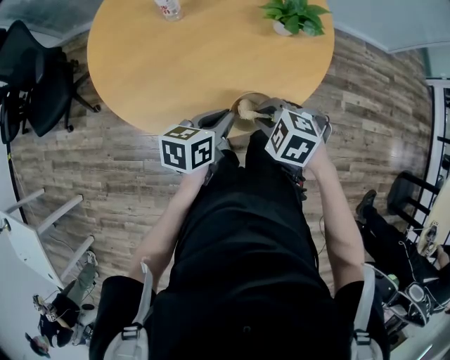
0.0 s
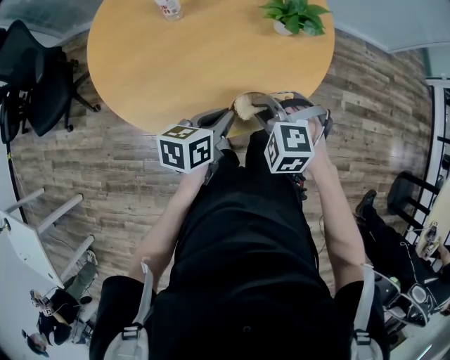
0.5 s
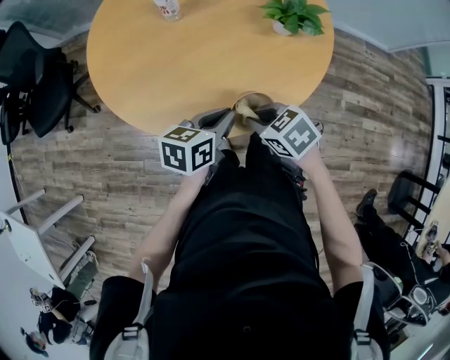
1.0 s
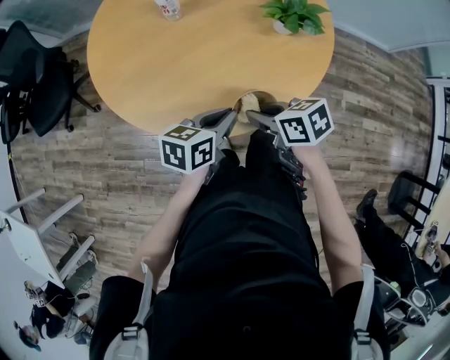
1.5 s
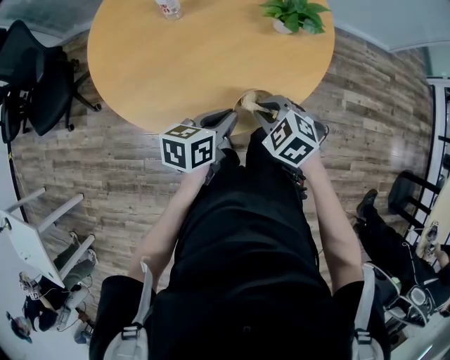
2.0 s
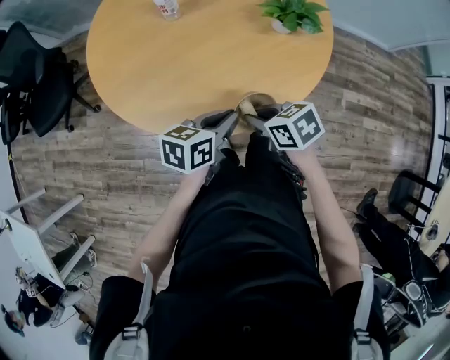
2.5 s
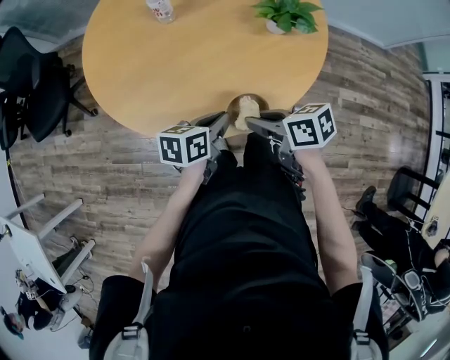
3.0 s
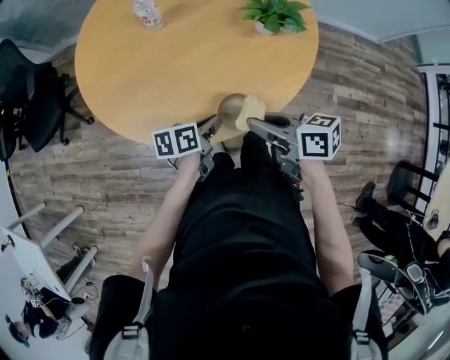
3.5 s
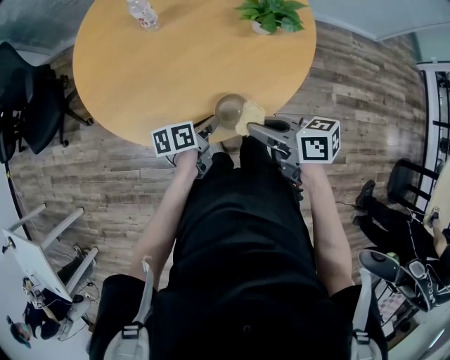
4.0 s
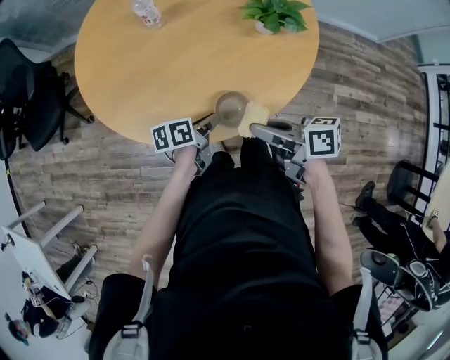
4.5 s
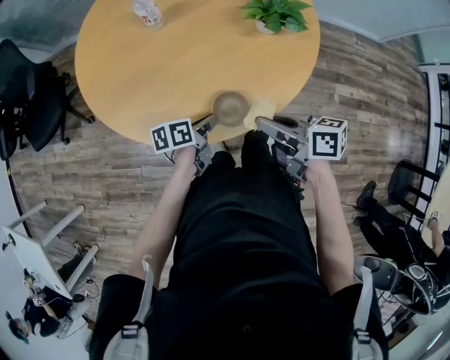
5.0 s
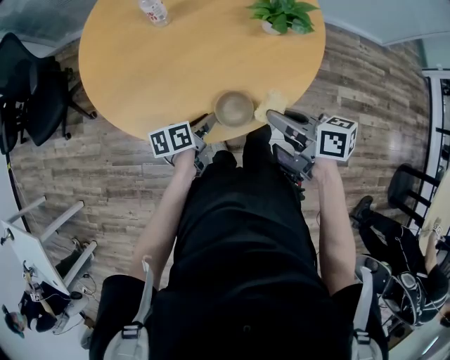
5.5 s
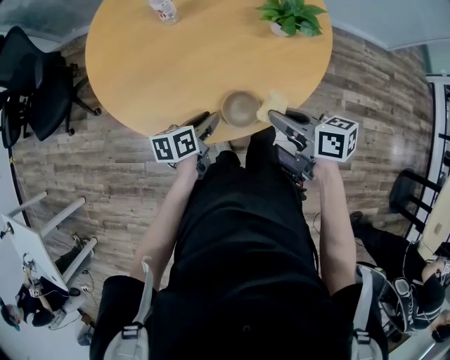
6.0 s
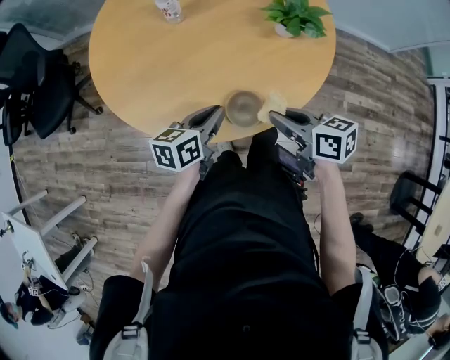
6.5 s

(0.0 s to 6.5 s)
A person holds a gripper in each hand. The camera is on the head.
2.0 s - 4.5 s: The left gripper goes about 10 cm downward, and swivels about 30 degrees, while the right gripper heads upward, covering roughly 5 cm, and twists some 70 degrees clockwise, seen from behind.
4.5 s - 6.5 s: The left gripper shifts approximately 10 cm upward, and turns by roughly 30 degrees, while the right gripper turns by some 20 degrees.

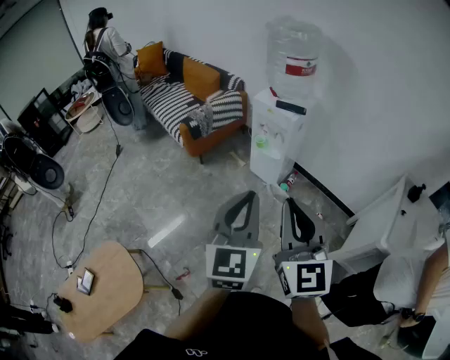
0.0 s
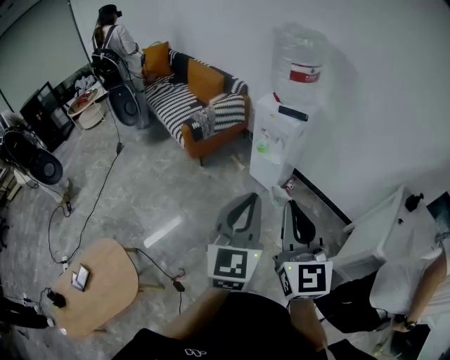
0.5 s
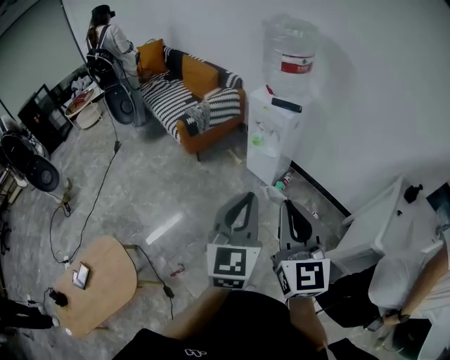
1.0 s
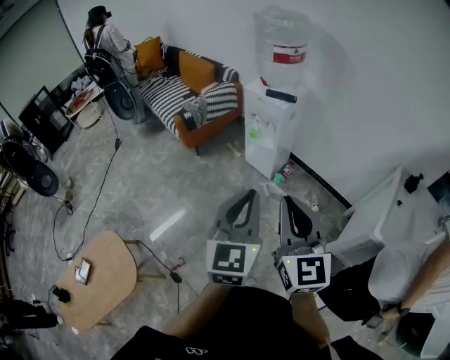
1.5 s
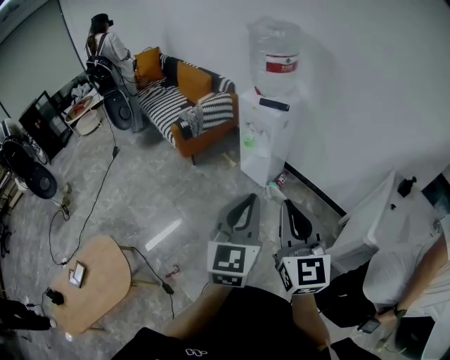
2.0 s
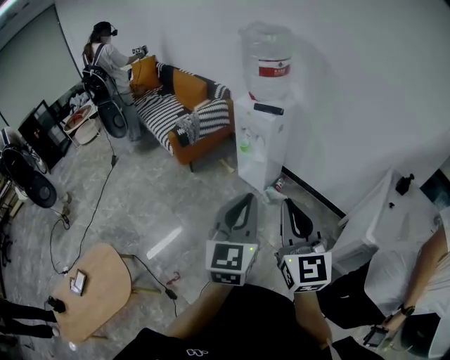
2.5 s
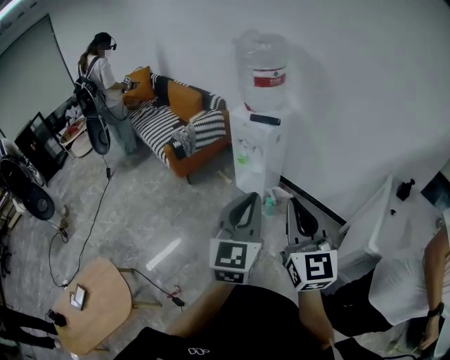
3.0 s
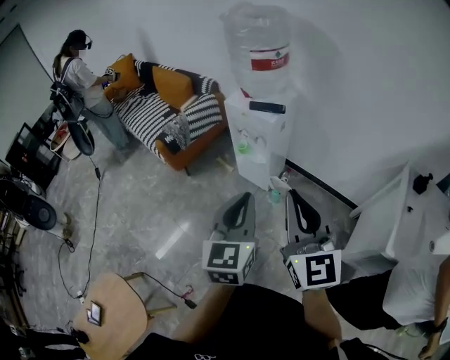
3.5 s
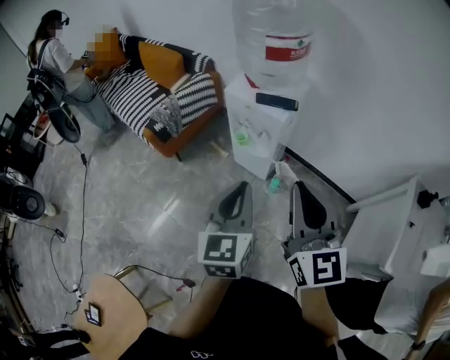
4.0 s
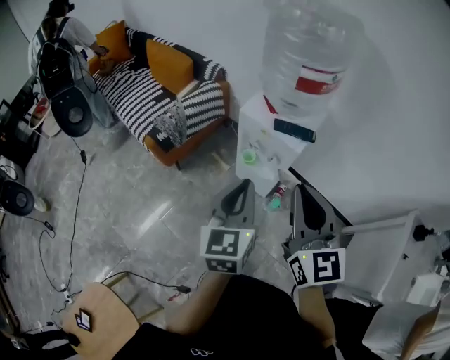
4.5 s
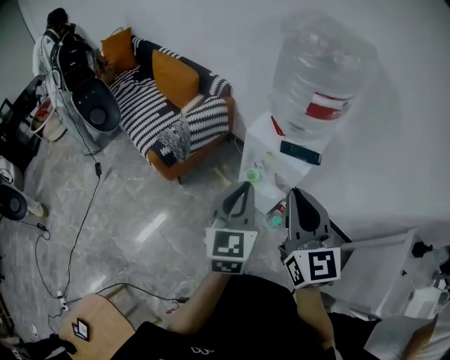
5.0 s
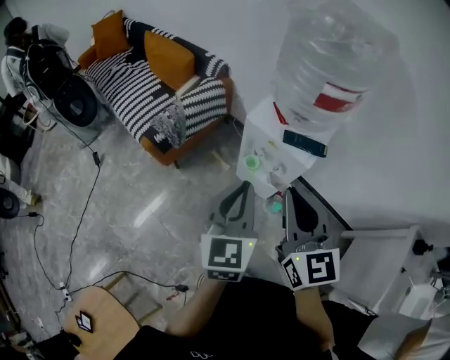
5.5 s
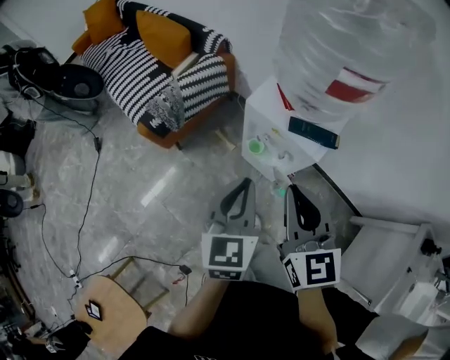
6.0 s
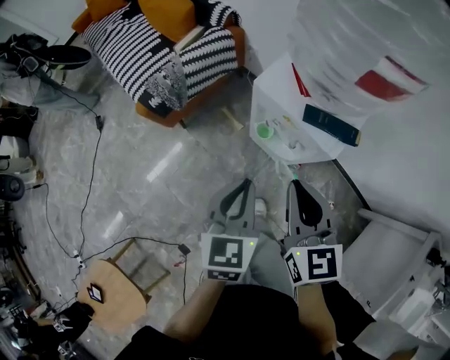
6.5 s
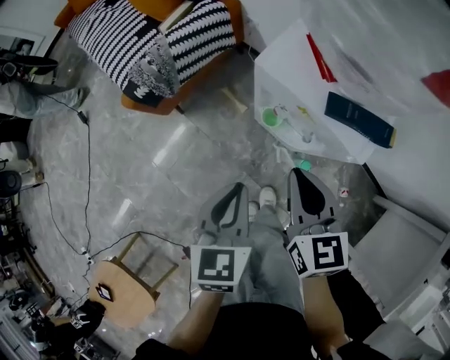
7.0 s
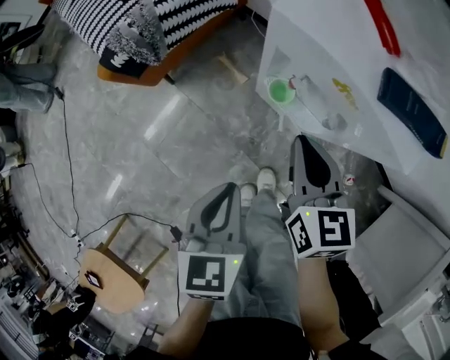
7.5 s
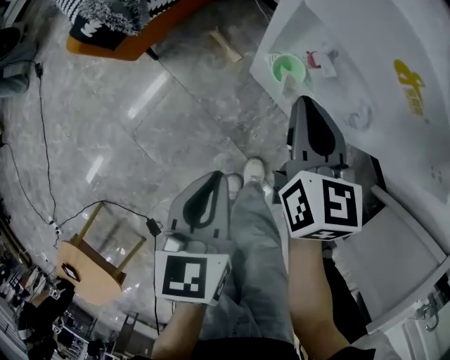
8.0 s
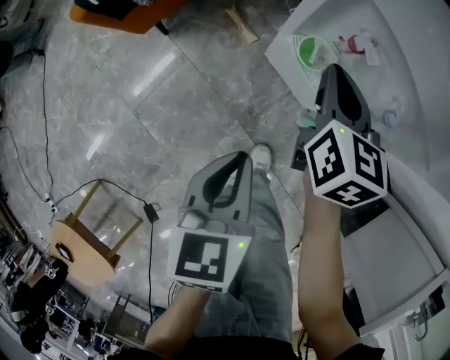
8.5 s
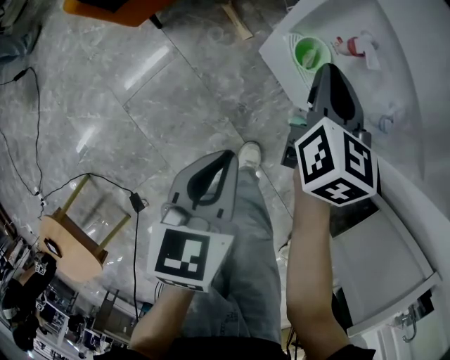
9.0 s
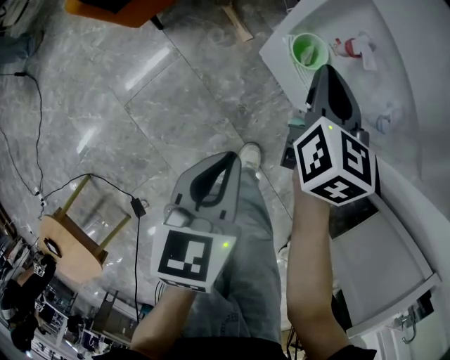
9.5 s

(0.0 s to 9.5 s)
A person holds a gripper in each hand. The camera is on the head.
0.0 s - 2.0 s: The two grippers go some 10 cm to the right.
2.0 s - 4.0 s: Both grippers travel together forward, approximately 30 cm.
4.0 s - 5.5 s: Both grippers move forward and to the left, some 20 cm.
5.5 s - 7.5 s: The left gripper is displaced downward by some 30 cm, and rotates roughly 30 degrees, while the right gripper is displaced downward and forward by roughly 40 cm, and rotates about 30 degrees.
7.5 s - 9.5 s: The right gripper shifts about 15 cm downward and forward; the left gripper goes roughly 10 cm downward.

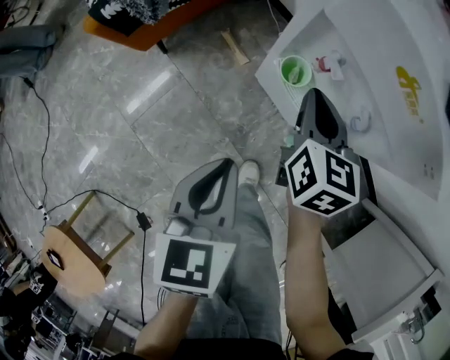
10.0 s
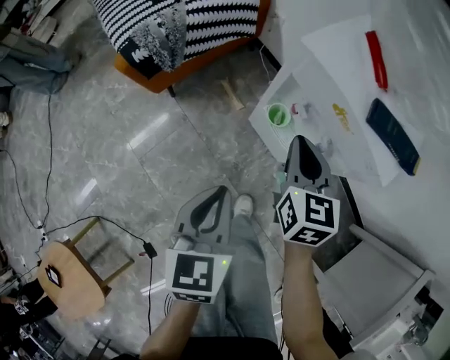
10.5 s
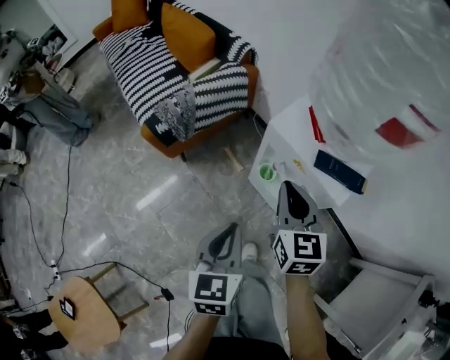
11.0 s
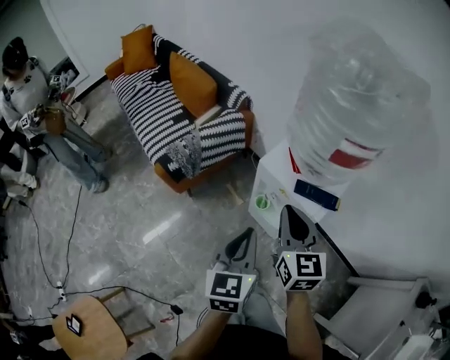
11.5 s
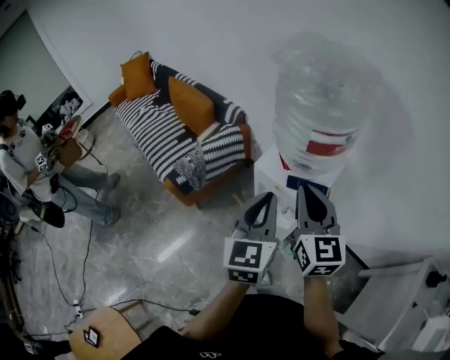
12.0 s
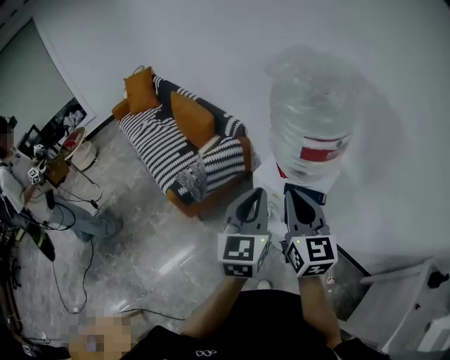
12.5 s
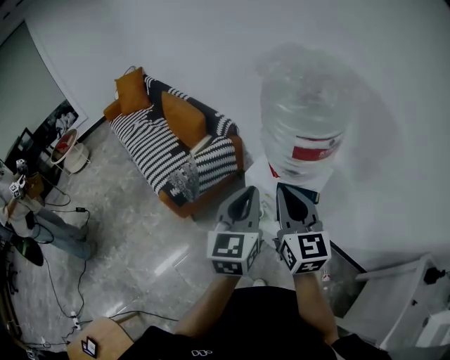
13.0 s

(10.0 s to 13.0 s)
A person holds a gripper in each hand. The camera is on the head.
10.0 s - 11.5 s: Both grippers move upward, about 35 cm. The left gripper turns by some 20 degrees.
11.5 s - 13.0 s: The grippers both shift upward by roughly 15 cm.

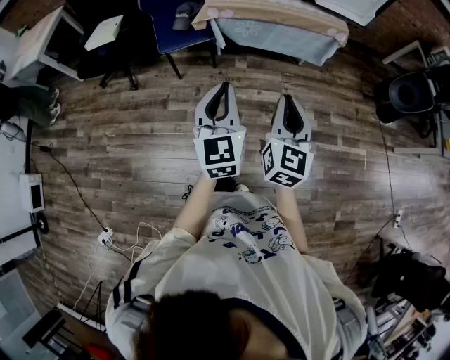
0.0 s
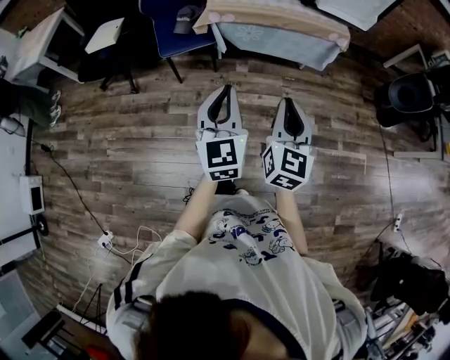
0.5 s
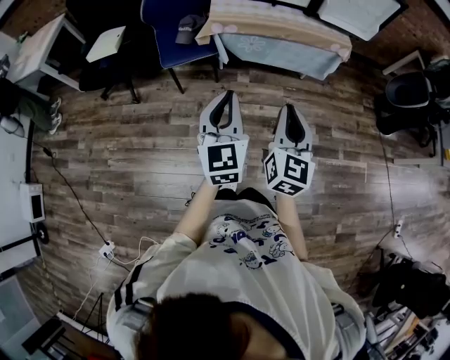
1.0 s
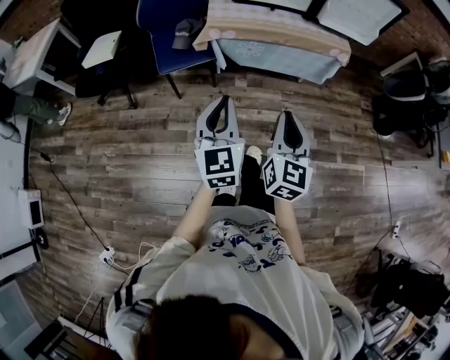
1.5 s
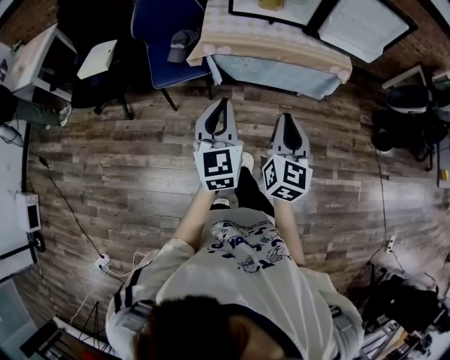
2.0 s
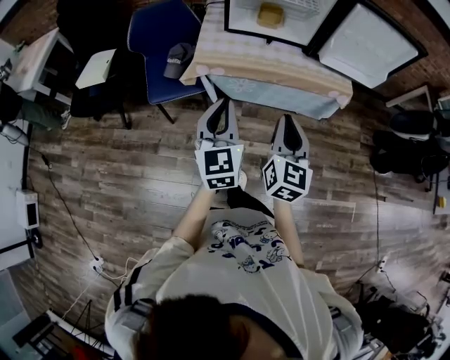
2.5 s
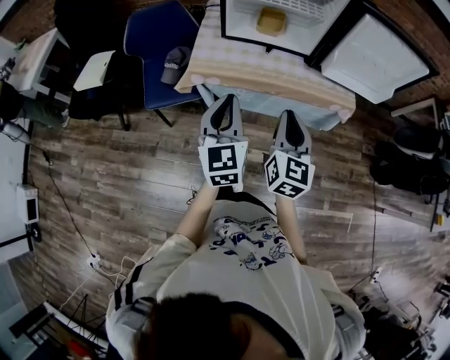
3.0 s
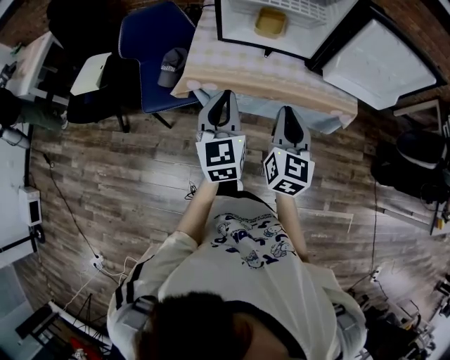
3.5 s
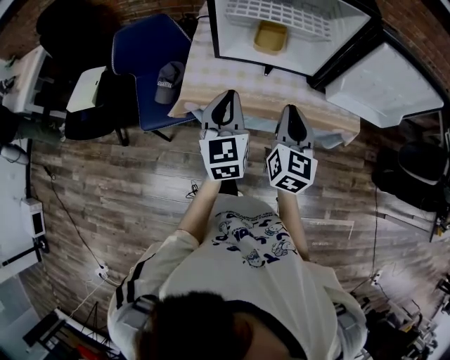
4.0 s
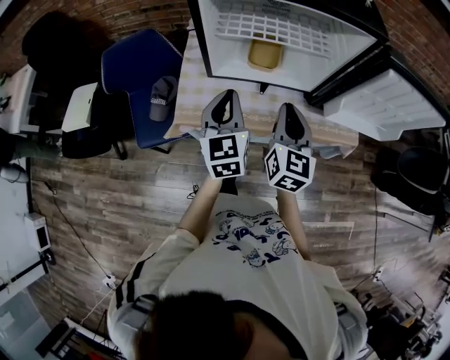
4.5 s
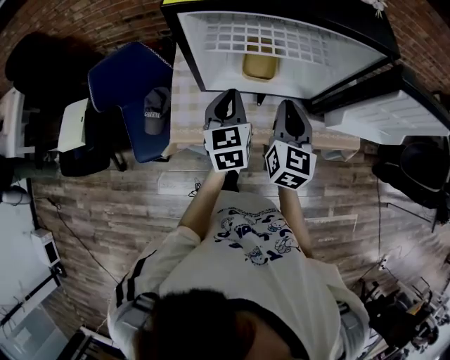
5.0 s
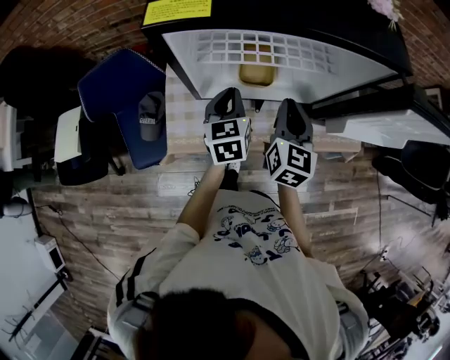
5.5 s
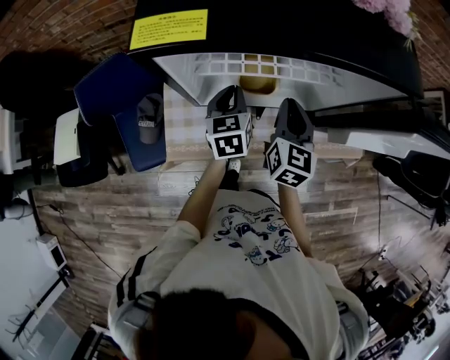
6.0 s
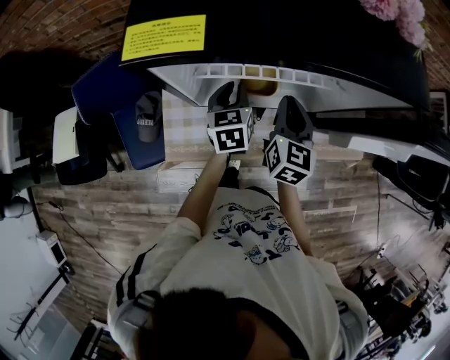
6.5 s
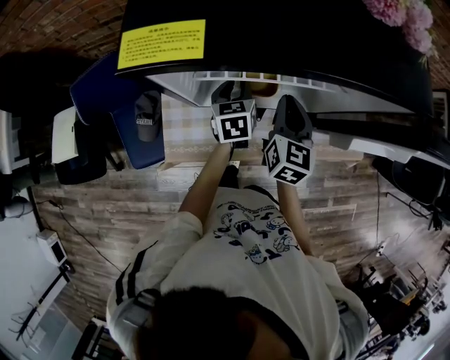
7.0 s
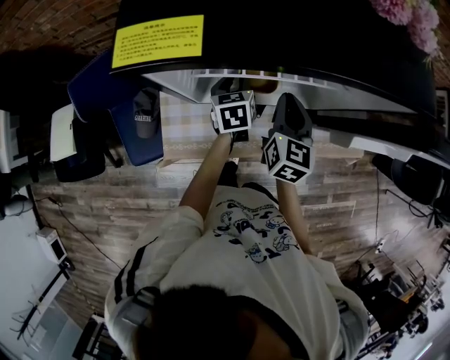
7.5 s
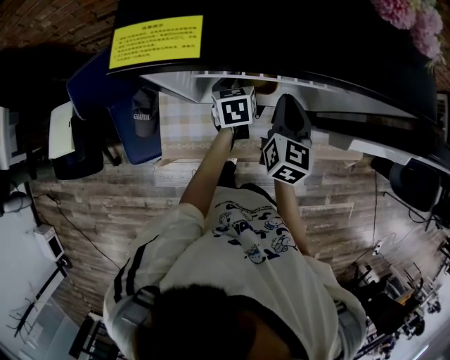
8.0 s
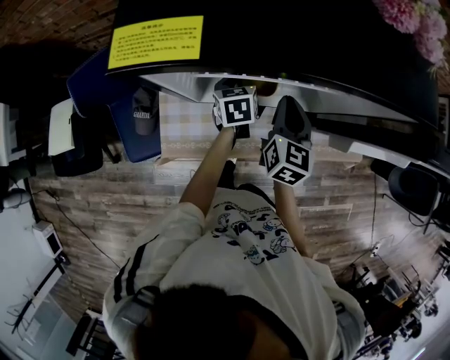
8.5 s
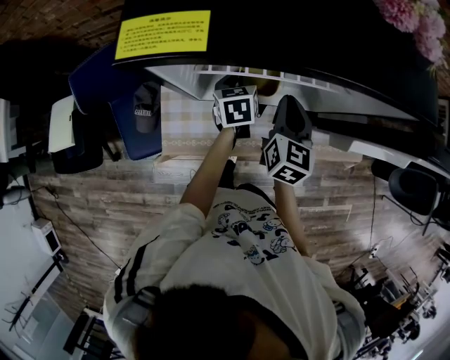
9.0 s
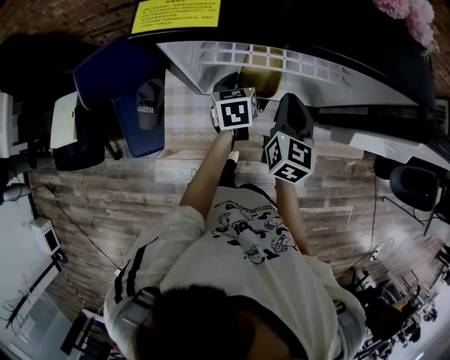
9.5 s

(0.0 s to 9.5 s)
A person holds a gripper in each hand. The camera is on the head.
0.0 s - 2.0 s: Both grippers move forward, some 20 cm.
2.0 s - 4.0 s: Both grippers travel together forward, approximately 40 cm.
4.0 s - 5.5 s: The grippers both shift forward by about 25 cm. The left gripper rotates approximately 20 degrees.
5.5 s - 7.5 s: The left gripper shifts about 10 cm forward and downward, and opens; the right gripper goes approximately 5 cm forward.
7.5 s - 9.5 s: The left gripper closes its fingers.
